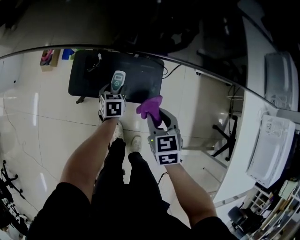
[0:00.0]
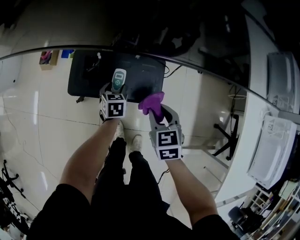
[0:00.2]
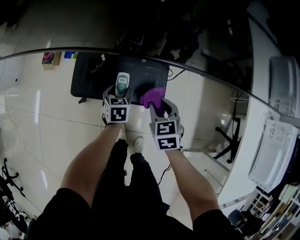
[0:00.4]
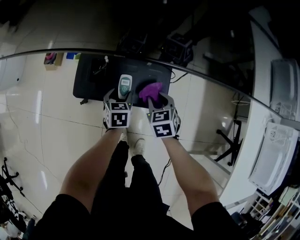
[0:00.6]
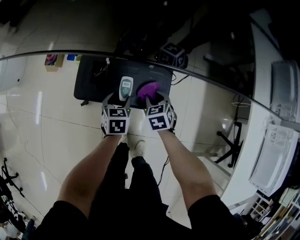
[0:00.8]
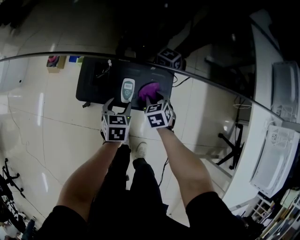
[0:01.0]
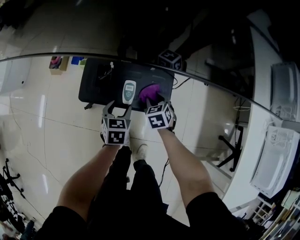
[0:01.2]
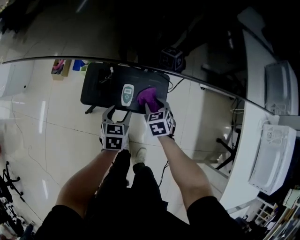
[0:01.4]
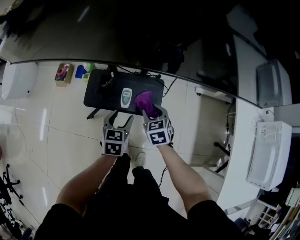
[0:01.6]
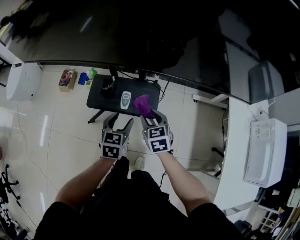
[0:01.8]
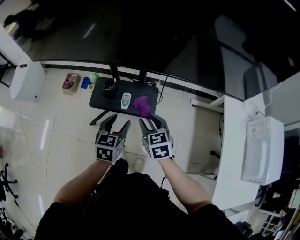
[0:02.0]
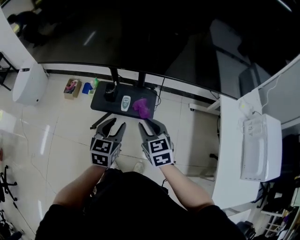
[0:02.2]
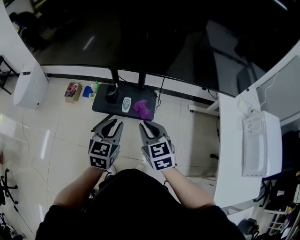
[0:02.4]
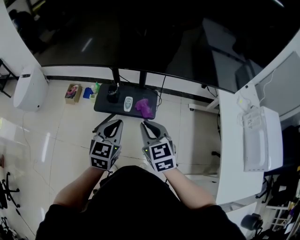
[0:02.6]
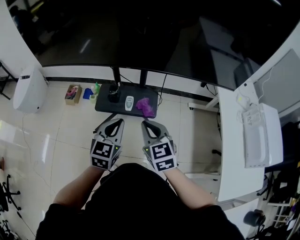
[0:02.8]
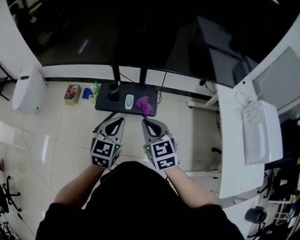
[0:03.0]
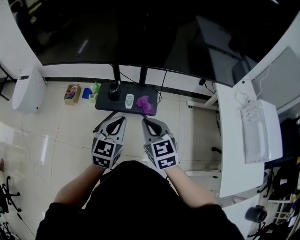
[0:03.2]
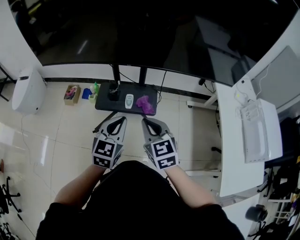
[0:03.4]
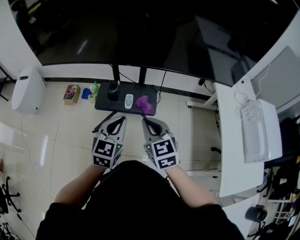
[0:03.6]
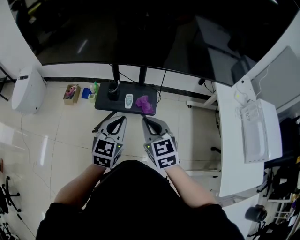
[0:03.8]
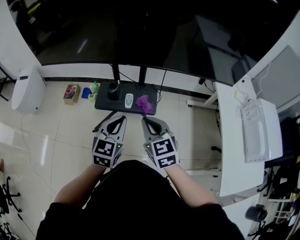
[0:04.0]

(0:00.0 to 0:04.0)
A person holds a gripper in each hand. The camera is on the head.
0:00.0 - 0:01.4: The right gripper shifts some 10 cm downward and forward, while the left gripper moves upward and backward, some 10 cm.
0:01.4 - 0:02.6: Both grippers travel together upward and backward, approximately 35 cm. The right gripper rotates about 30 degrees, and closes up, while the left gripper changes its angle by roughly 30 degrees, and closes its fingers.
0:02.6 - 0:04.0: The grippers stay close to where they were, moving slightly.

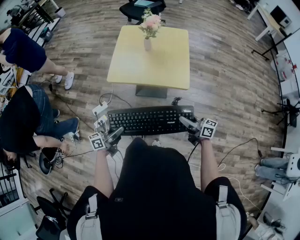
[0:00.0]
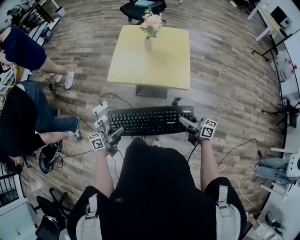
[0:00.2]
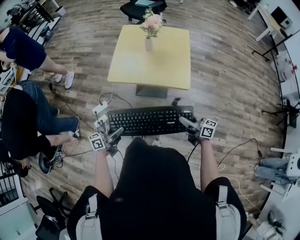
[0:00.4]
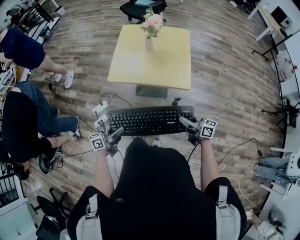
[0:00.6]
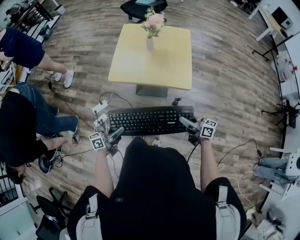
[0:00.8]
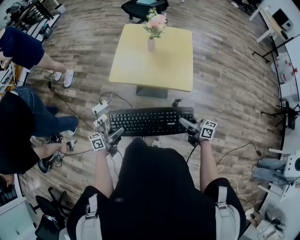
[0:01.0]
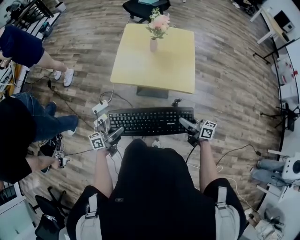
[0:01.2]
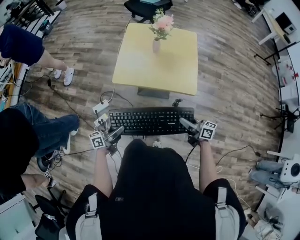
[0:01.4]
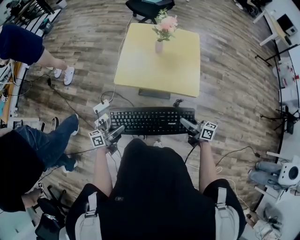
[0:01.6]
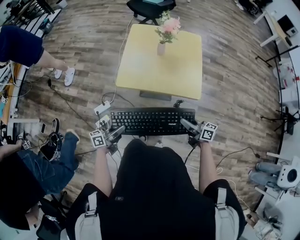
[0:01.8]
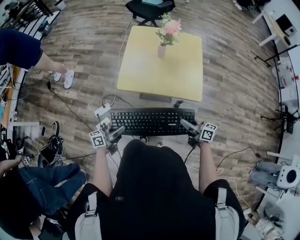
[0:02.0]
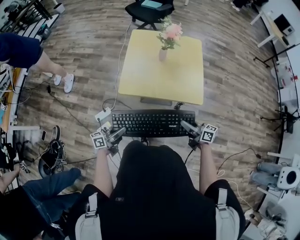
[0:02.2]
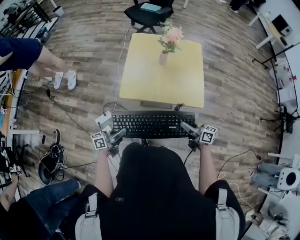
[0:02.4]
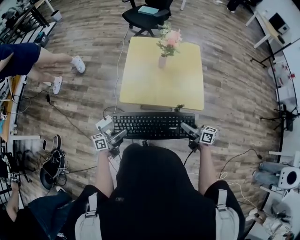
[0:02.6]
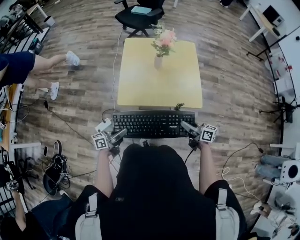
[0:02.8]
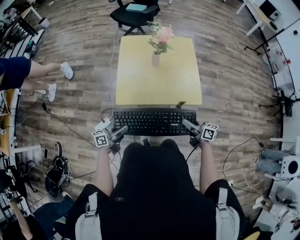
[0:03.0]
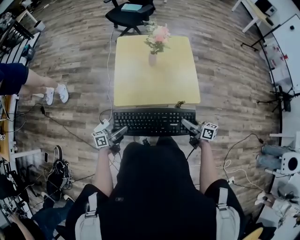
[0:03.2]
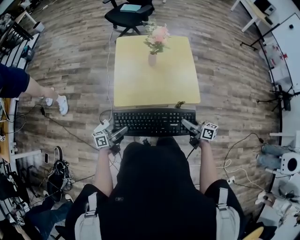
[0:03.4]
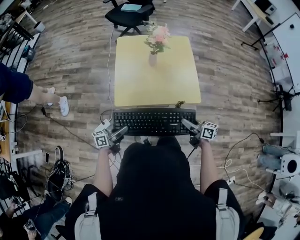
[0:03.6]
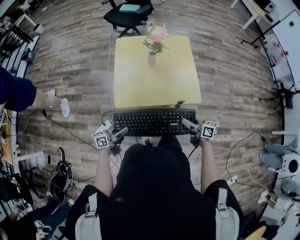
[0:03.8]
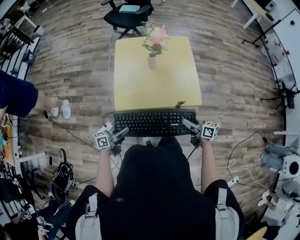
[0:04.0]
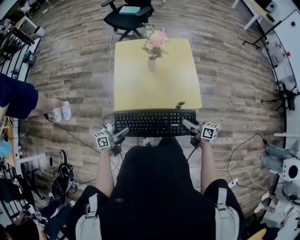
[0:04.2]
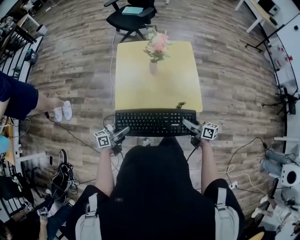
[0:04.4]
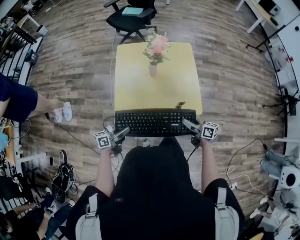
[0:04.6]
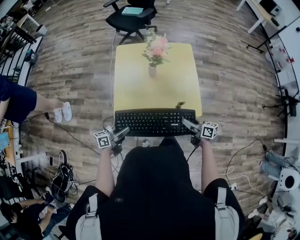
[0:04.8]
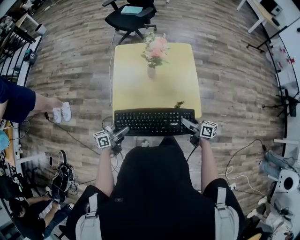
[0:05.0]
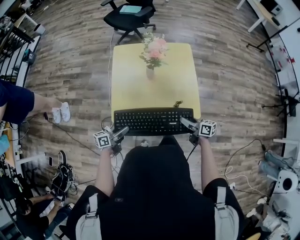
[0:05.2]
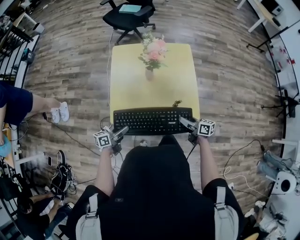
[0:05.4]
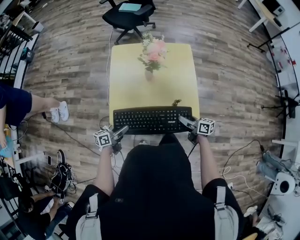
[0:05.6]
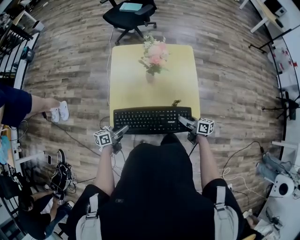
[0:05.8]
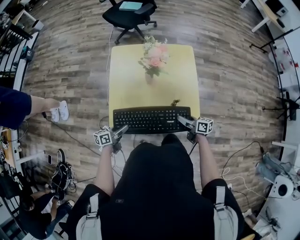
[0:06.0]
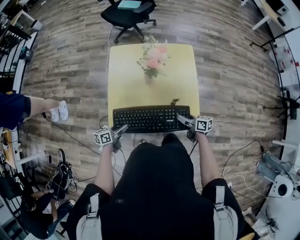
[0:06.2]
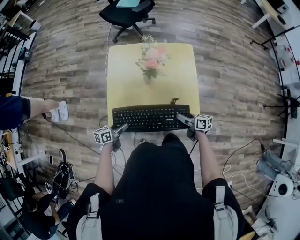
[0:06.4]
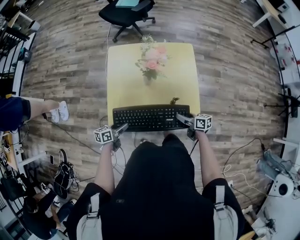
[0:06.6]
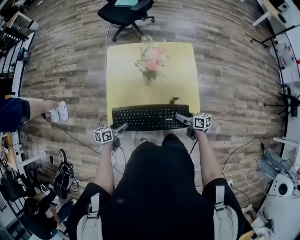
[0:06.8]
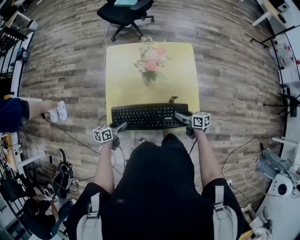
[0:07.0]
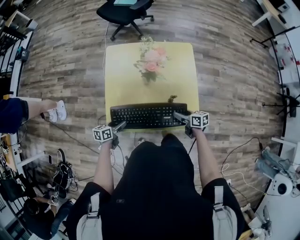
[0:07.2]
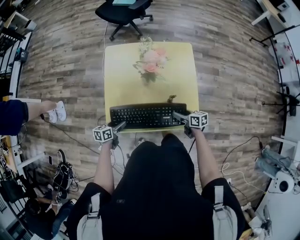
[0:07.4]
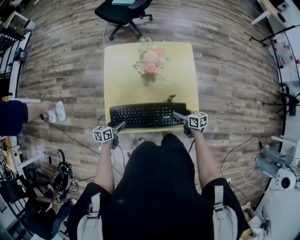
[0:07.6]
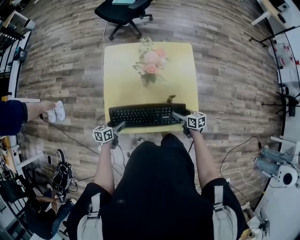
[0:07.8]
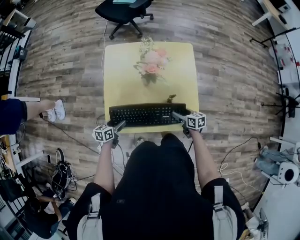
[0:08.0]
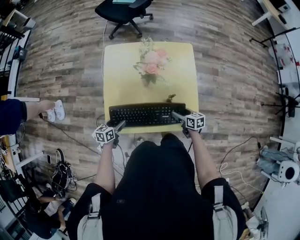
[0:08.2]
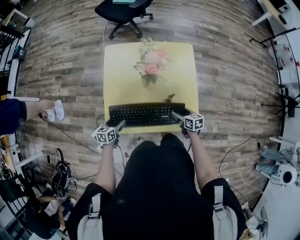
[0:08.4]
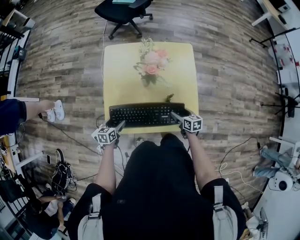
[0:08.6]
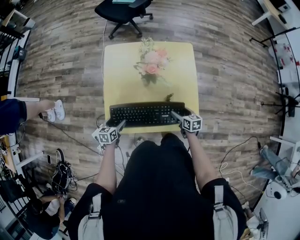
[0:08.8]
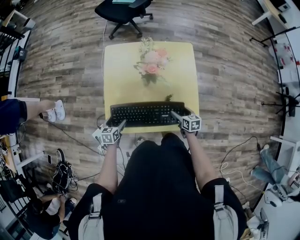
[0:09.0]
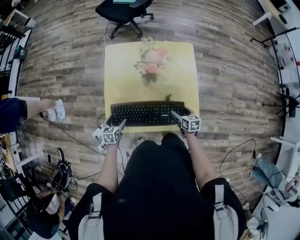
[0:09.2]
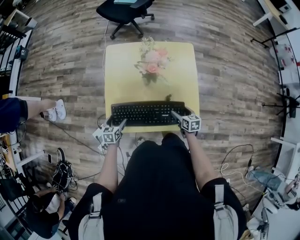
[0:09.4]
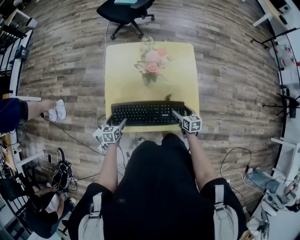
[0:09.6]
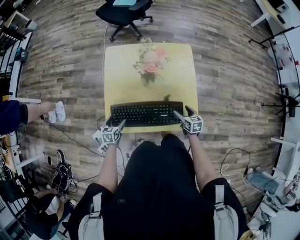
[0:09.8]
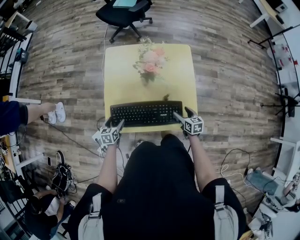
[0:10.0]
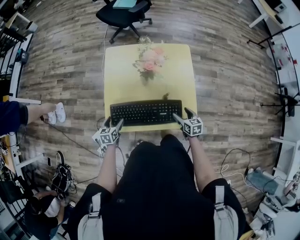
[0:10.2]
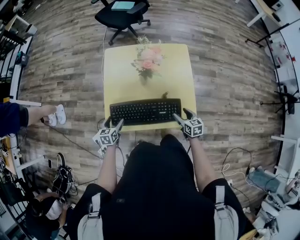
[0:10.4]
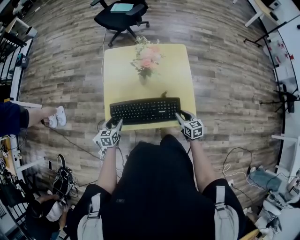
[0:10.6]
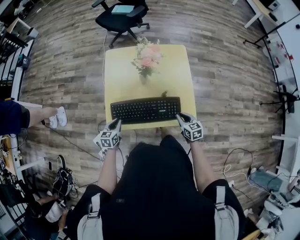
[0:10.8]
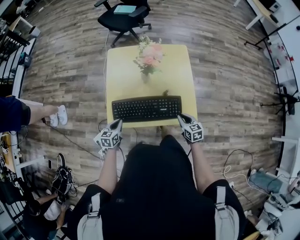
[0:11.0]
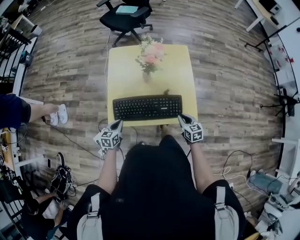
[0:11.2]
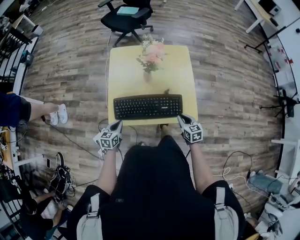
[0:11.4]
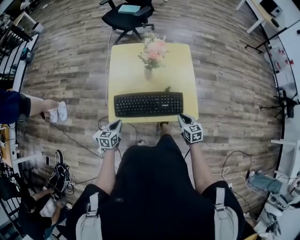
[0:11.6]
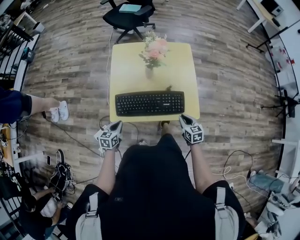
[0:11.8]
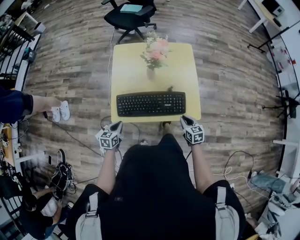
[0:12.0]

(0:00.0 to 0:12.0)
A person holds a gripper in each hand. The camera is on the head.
0:00.0 - 0:01.6: The right gripper moves to the left and forward, some 10 cm. Meanwhile the left gripper shifts some 15 cm forward and to the left.
0:01.6 - 0:03.0: The left gripper shifts about 10 cm forward. The right gripper travels forward by some 5 cm.
0:03.0 - 0:04.4: The two grippers go roughly 5 cm forward.
0:04.4 - 0:06.0: Both grippers travel together forward and downward, about 15 cm.
0:06.0 - 0:07.6: The right gripper moves forward, approximately 5 cm. The left gripper is displaced forward and downward by some 10 cm.
0:07.6 - 0:09.0: The left gripper turns by roughly 20 degrees.
0:09.0 - 0:10.4: The right gripper ends up about 5 cm from where it was.
0:10.4 - 0:12.0: Both grippers move backward, about 10 cm. The right gripper closes up, while the left gripper closes its fingers.

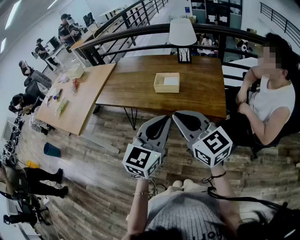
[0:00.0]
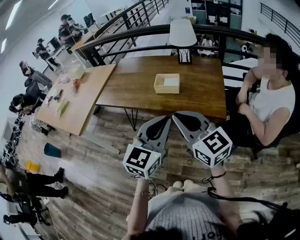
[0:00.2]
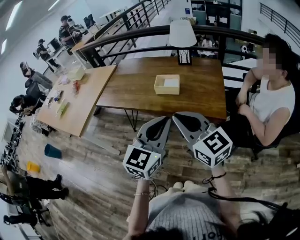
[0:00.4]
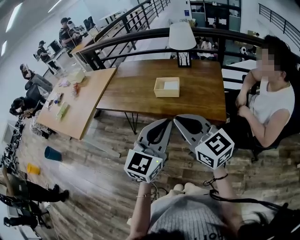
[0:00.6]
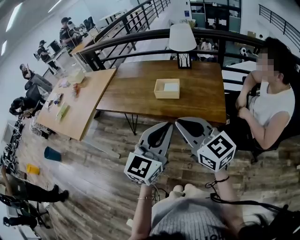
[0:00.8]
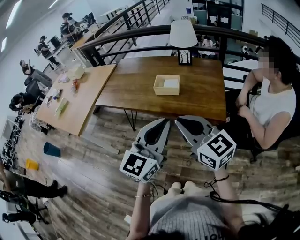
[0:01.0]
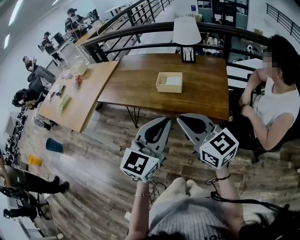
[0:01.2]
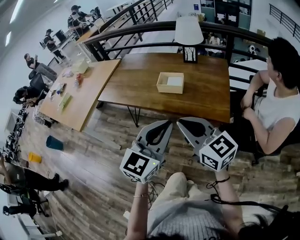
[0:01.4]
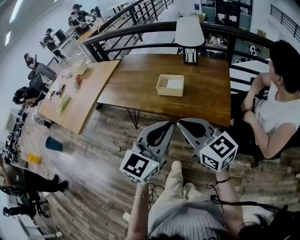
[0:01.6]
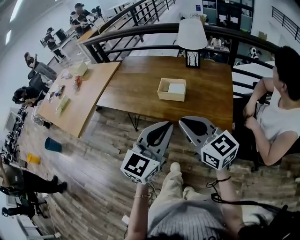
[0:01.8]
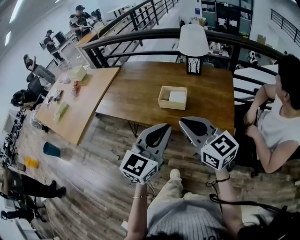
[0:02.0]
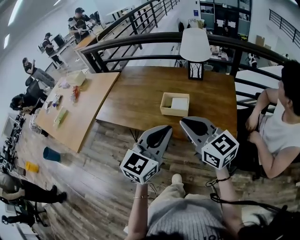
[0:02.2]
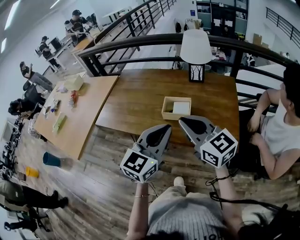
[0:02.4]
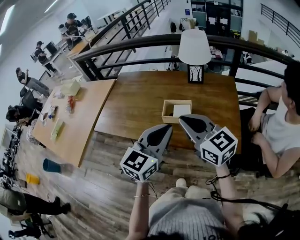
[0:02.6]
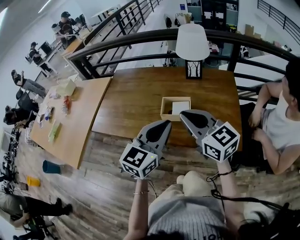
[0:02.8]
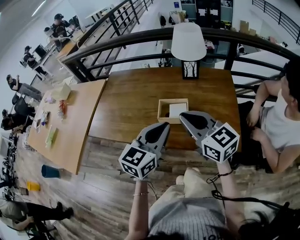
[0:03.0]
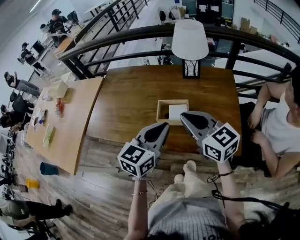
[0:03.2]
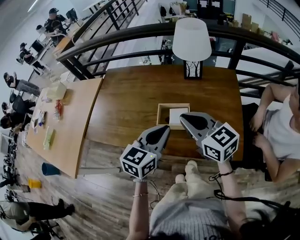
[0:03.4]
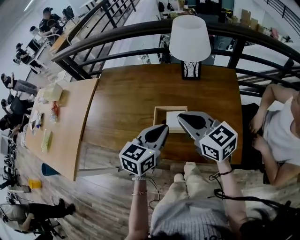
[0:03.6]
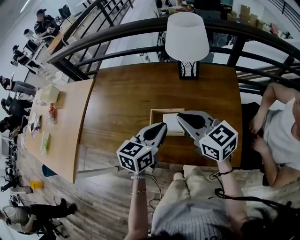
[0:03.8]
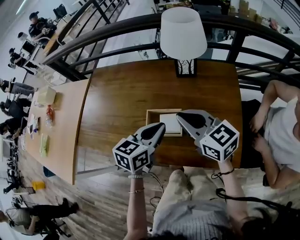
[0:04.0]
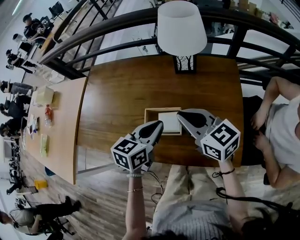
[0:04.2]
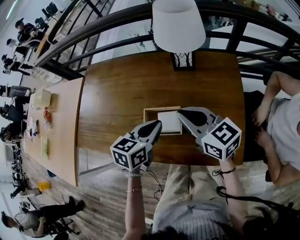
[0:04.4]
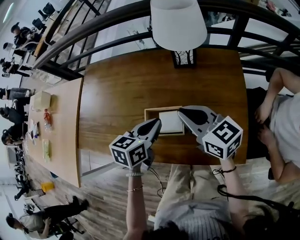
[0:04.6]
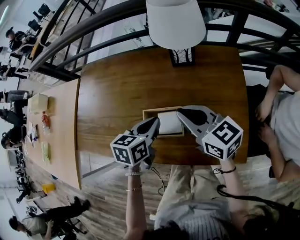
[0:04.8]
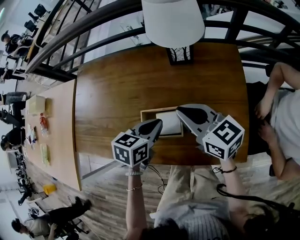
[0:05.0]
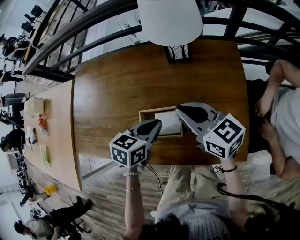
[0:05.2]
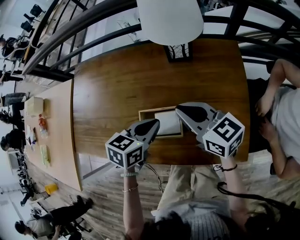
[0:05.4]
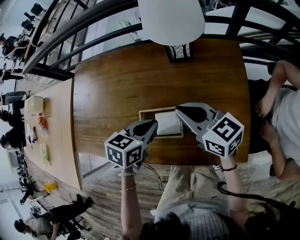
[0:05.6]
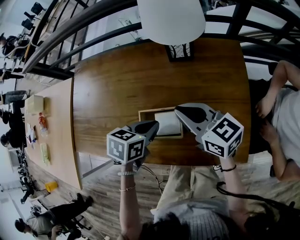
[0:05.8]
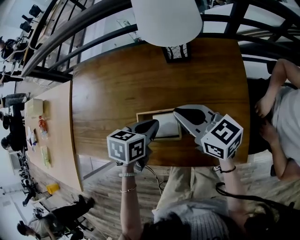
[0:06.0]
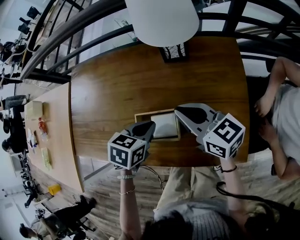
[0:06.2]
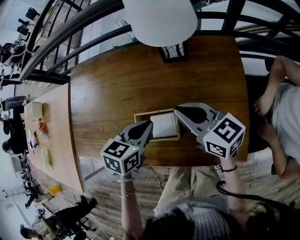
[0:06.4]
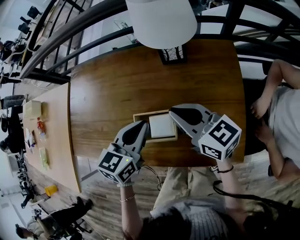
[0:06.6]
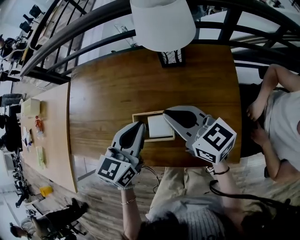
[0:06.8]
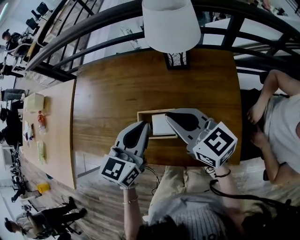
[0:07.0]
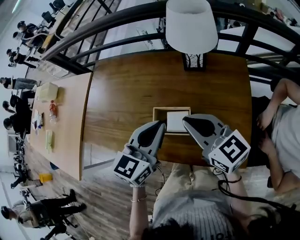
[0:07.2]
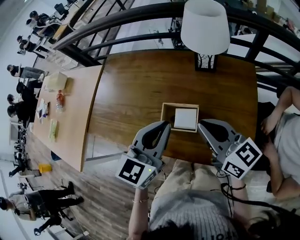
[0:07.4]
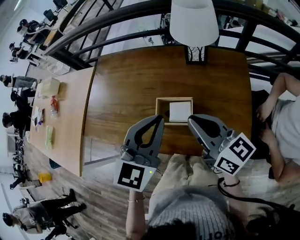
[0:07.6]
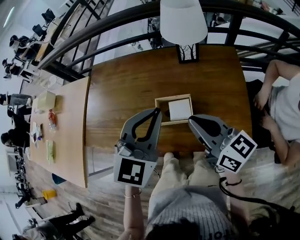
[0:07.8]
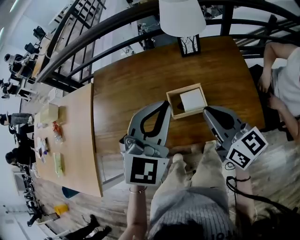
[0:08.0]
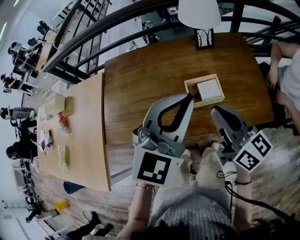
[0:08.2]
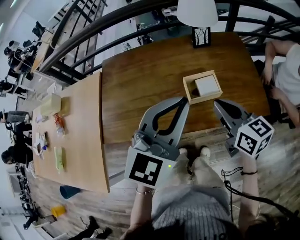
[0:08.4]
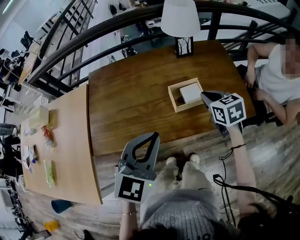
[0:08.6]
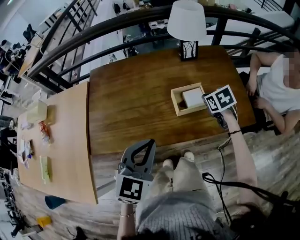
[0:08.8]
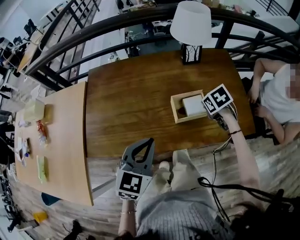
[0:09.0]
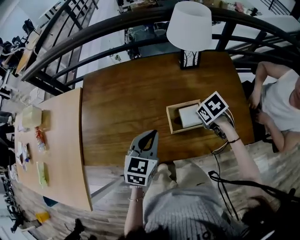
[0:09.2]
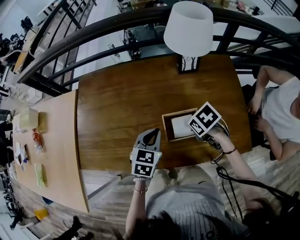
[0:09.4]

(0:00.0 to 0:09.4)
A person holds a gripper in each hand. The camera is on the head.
0:00.0 - 0:01.6: There are only small adjustments of the grippers.
0:01.6 - 0:03.2: Both grippers travel together forward, about 25 cm. The left gripper changes its angle by approximately 20 degrees.
0:03.2 - 0:04.8: Both grippers move forward and downward, roughly 20 cm. The left gripper swivels about 30 degrees.
0:04.8 - 0:06.2: The left gripper changes its angle by approximately 20 degrees.
0:06.2 - 0:07.8: The left gripper moves upward, roughly 20 cm, and tilts its fingers roughly 40 degrees upward. Meanwhile the right gripper shifts roughly 15 cm backward, upward and to the left.
0:07.8 - 0:09.4: Both grippers travel together downward, approximately 20 cm. The left gripper changes its angle by about 30 degrees. The right gripper angles its fingers downward, by approximately 70 degrees.
